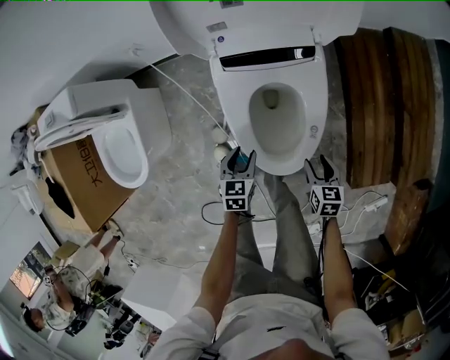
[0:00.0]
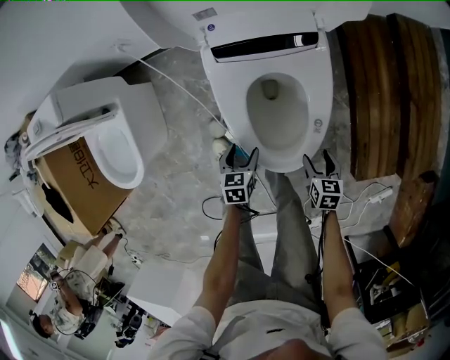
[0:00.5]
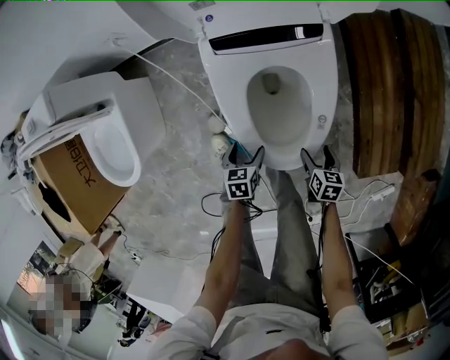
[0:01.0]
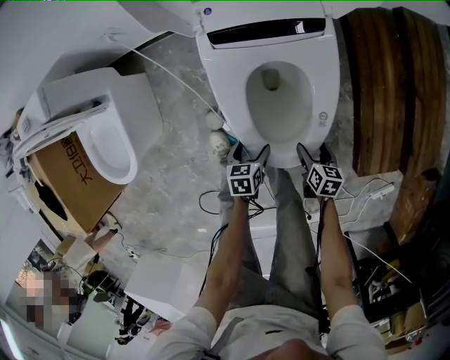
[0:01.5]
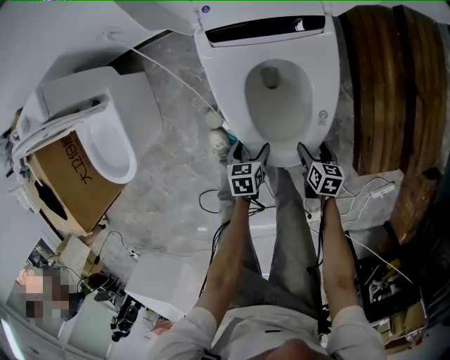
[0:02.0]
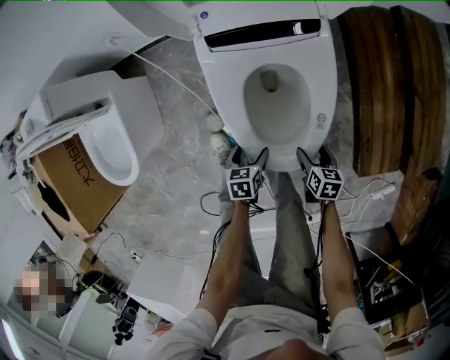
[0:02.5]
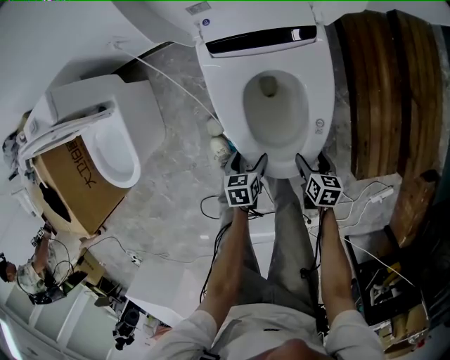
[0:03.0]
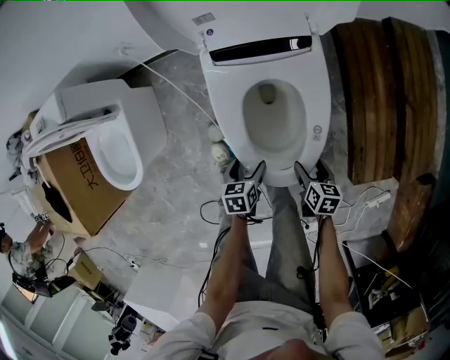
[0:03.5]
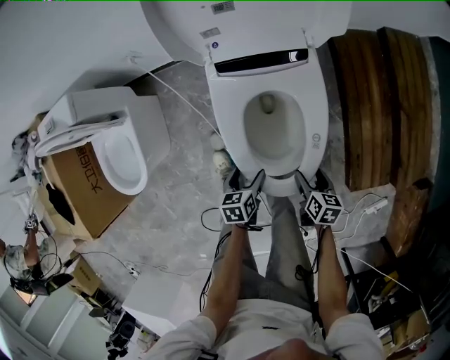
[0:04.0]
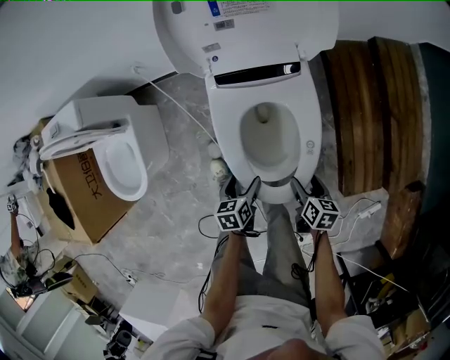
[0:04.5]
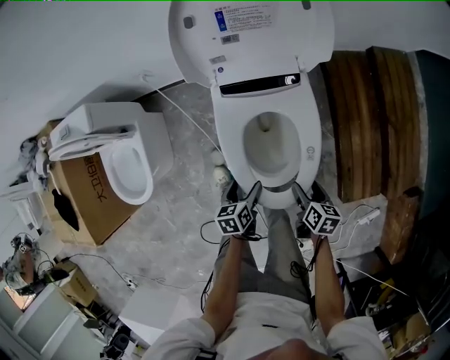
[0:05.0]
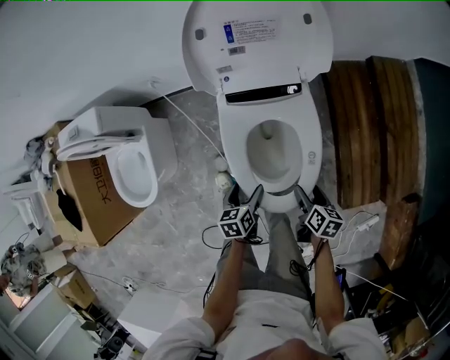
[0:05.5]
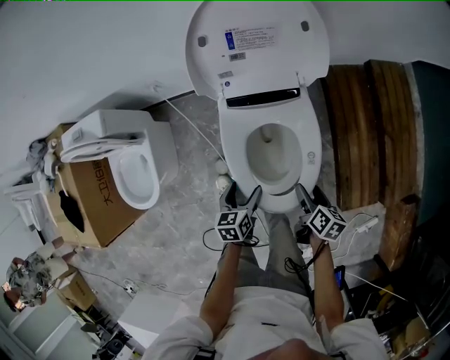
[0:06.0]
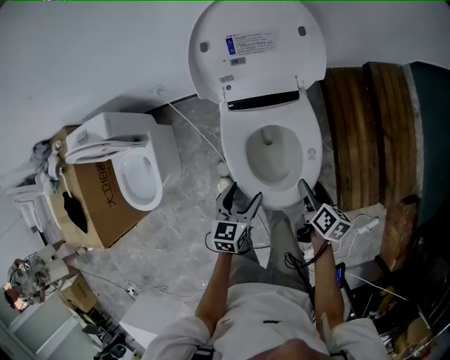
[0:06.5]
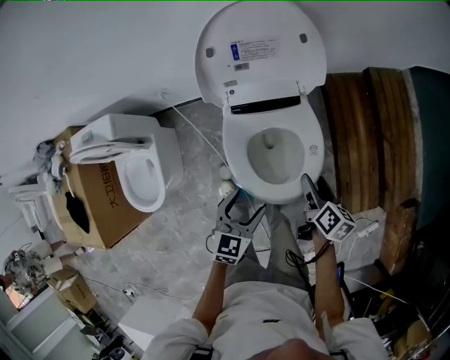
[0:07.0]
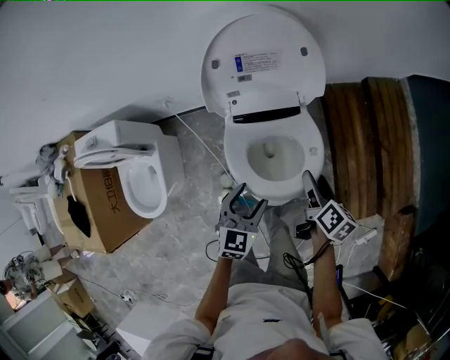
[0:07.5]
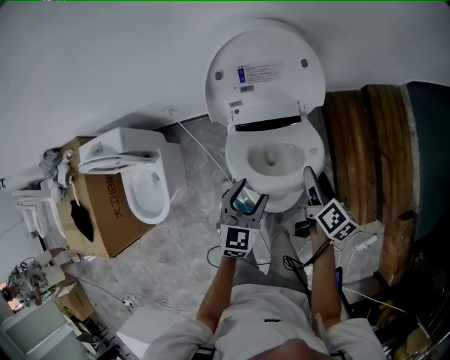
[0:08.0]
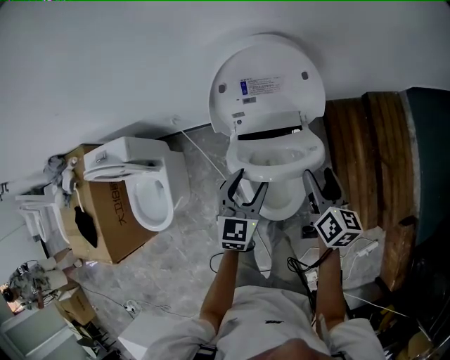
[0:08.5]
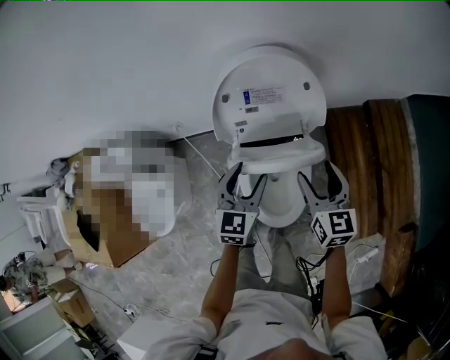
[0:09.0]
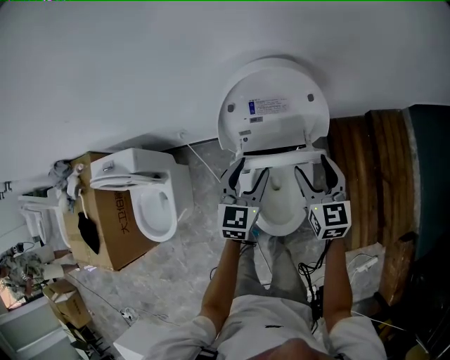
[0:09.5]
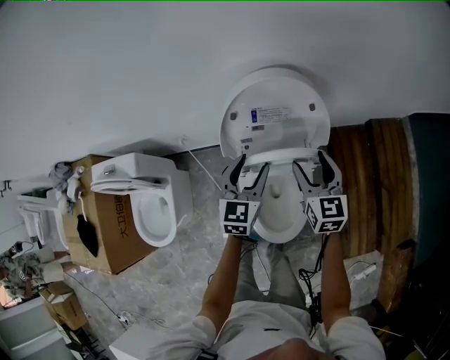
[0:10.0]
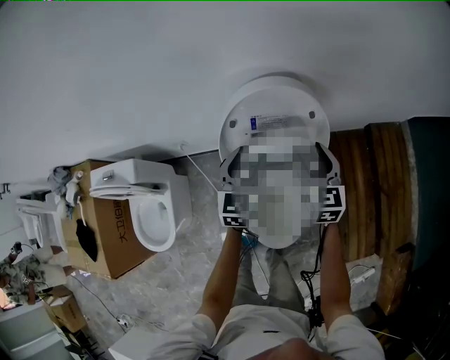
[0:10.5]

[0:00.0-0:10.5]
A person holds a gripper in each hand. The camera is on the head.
0:00.0 to 0:02.0: The right gripper goes roughly 10 cm downward, while the left gripper goes about 15 cm downward and backward, changes its angle by roughly 20 degrees, and opens.
0:02.0 to 0:04.0: Both grippers travel together upward, roughly 10 cm.
0:04.0 to 0:06.5: Both grippers travel together upward, about 20 cm. The left gripper turns by roughly 30 degrees. Meanwhile the right gripper changes its angle by some 20 degrees.
0:06.5 to 0:08.5: The left gripper heads forward and upward, covering approximately 20 cm, and swivels some 20 degrees. The right gripper moves upward and forward, some 20 cm, and changes its angle by roughly 20 degrees.
0:08.5 to 0:10.5: The two grippers go approximately 15 cm forward. The right gripper rotates some 40 degrees.

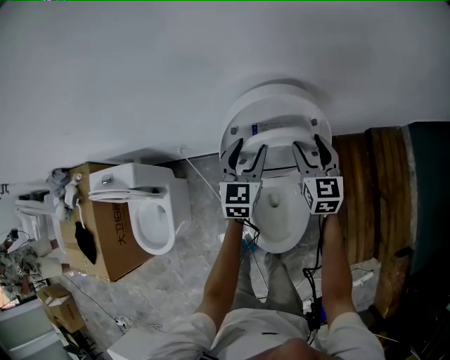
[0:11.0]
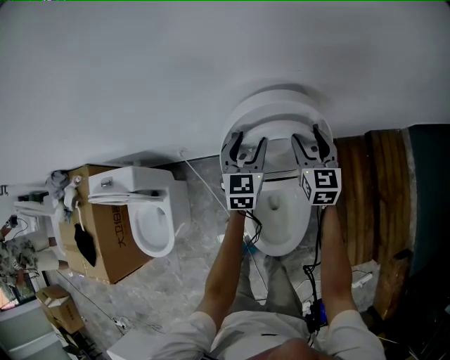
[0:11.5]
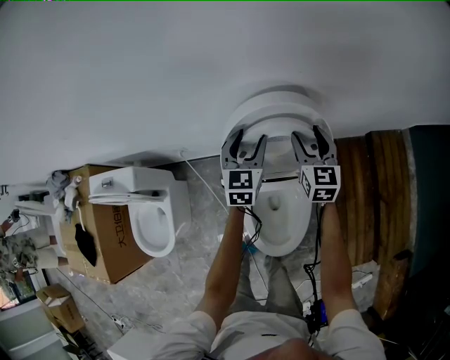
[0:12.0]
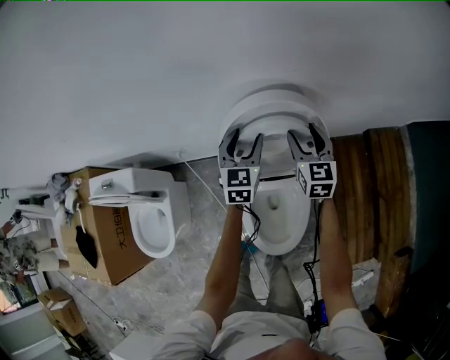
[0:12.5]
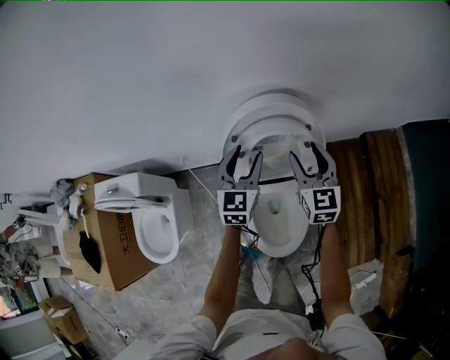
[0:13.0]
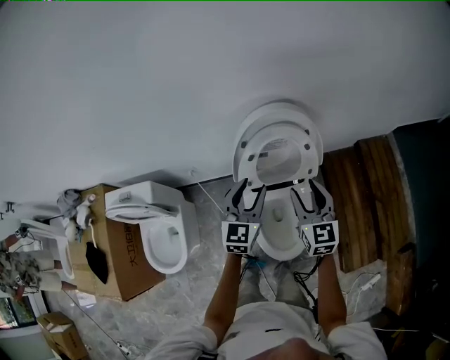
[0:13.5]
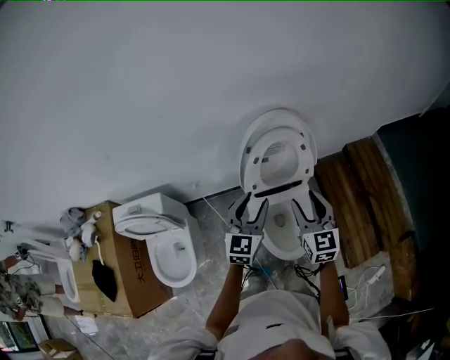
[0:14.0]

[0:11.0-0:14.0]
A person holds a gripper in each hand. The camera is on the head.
0:11.0 to 0:12.5: The grippers stay close to where they were, moving slightly.
0:12.5 to 0:14.0: Both grippers move backward and upward, approximately 30 cm.

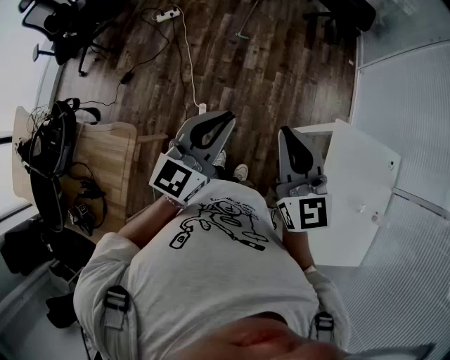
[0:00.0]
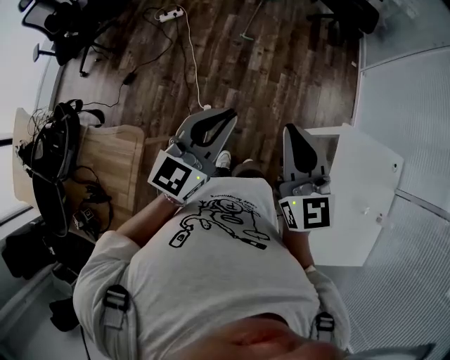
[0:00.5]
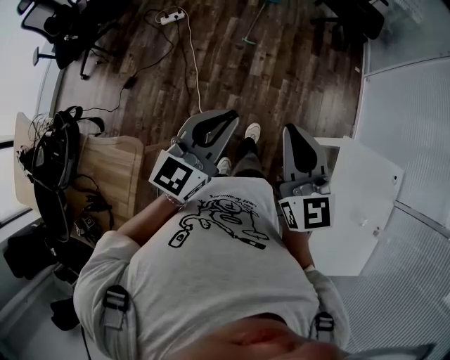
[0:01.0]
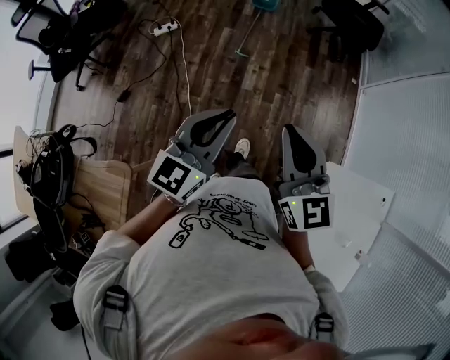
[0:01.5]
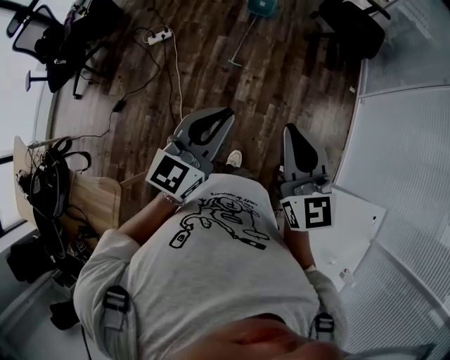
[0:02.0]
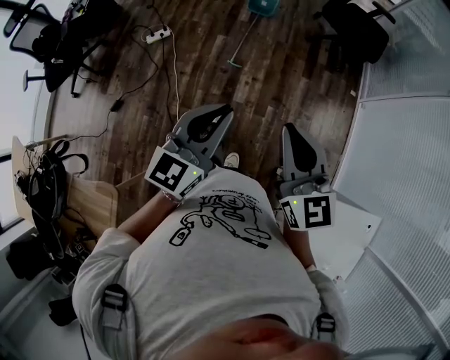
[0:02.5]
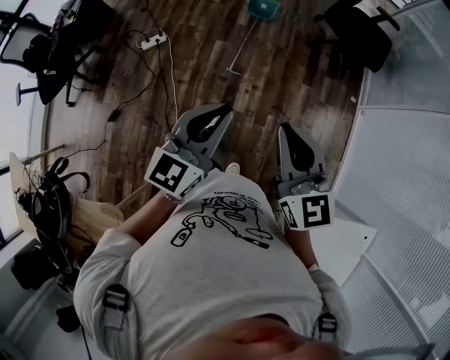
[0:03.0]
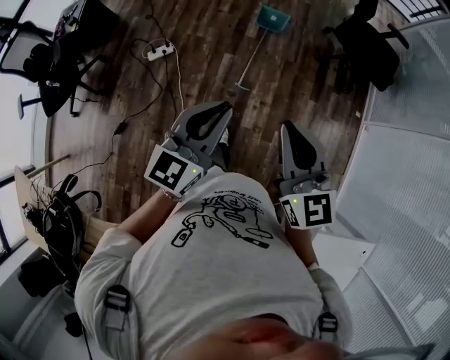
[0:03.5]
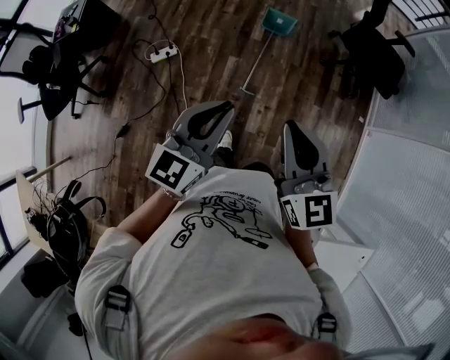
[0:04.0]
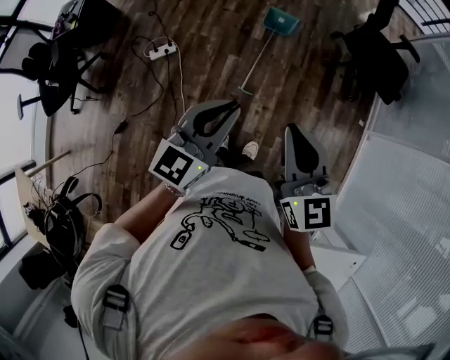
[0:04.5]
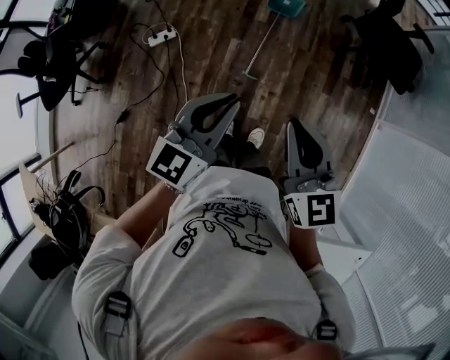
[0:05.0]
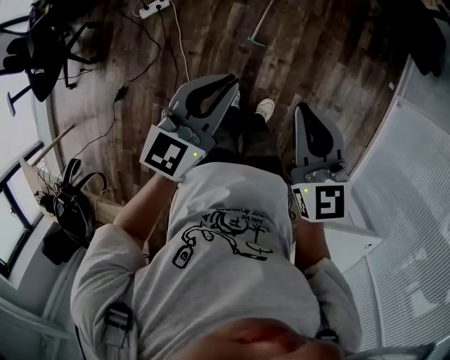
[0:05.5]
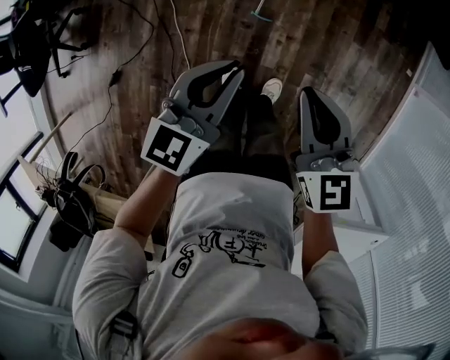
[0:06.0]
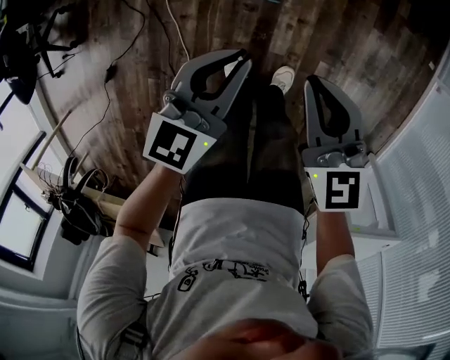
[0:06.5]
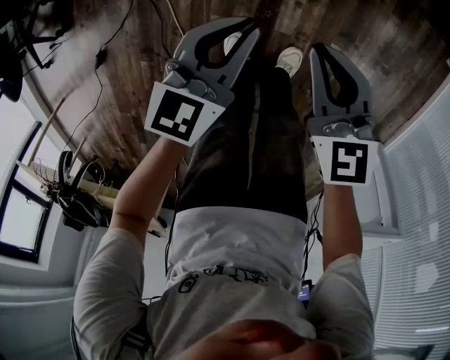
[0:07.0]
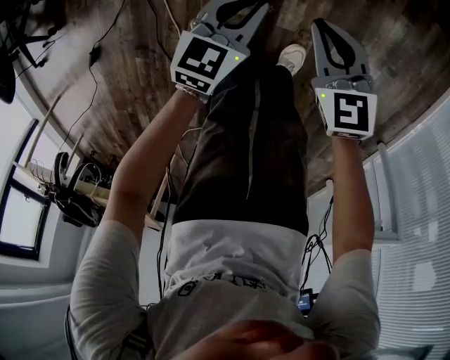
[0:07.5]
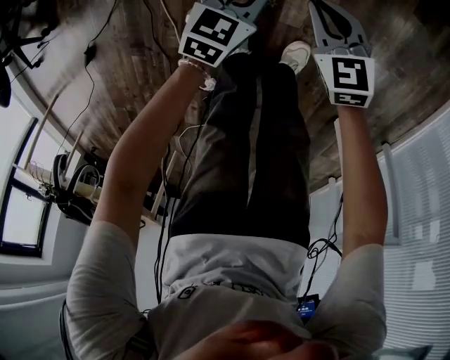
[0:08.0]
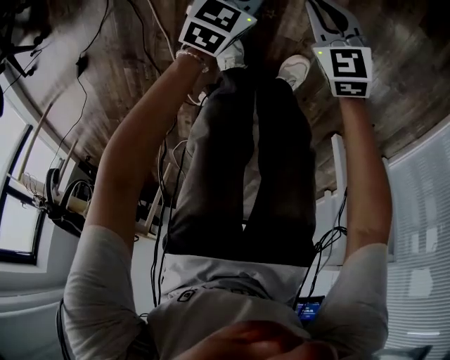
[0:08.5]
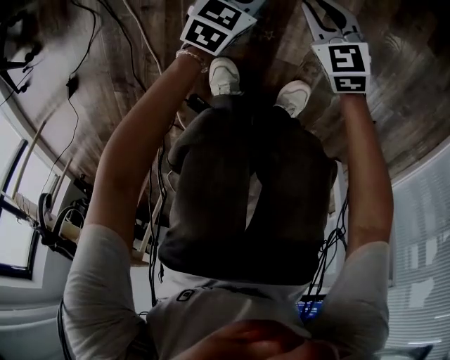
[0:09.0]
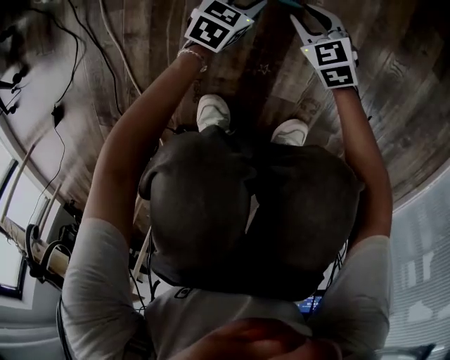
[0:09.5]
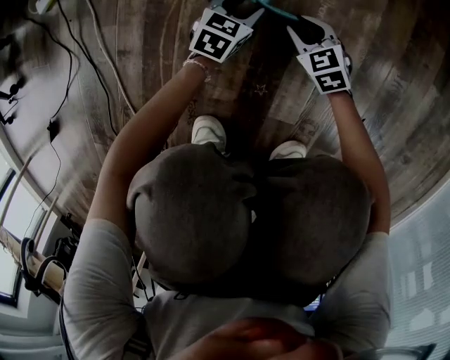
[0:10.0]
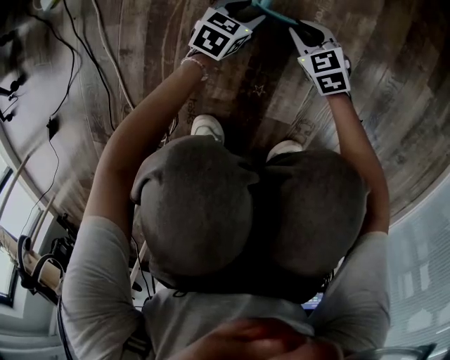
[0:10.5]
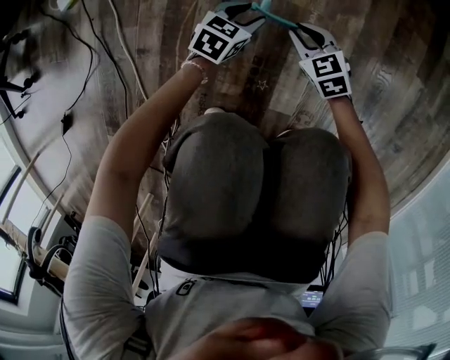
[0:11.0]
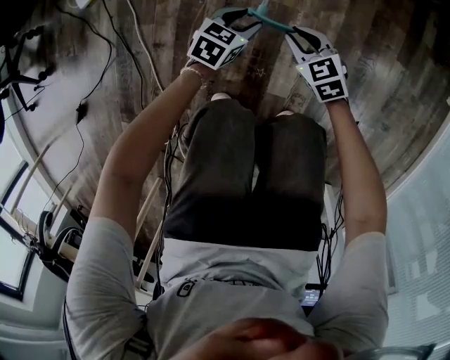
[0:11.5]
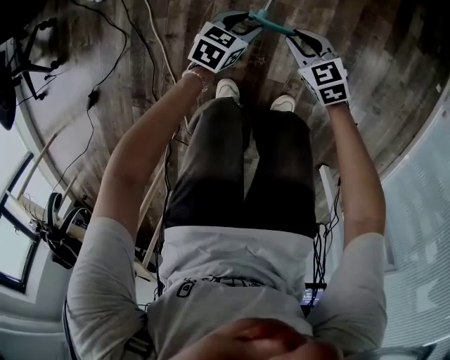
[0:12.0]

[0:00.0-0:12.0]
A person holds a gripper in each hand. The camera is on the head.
0:00.0 to 0:02.0: The grippers both shift forward by approximately 35 cm.
0:02.0 to 0:04.0: The two grippers travel together, forward and to the left, some 40 cm.
0:04.0 to 0:06.0: The grippers both shift downward by roughly 30 cm.
0:06.0 to 0:08.0: The grippers both shift downward by roughly 50 cm. The right gripper rotates approximately 20 degrees, while the left gripper changes its angle by some 20 degrees.
0:08.0 to 0:10.0: The two grippers go some 40 cm downward. The left gripper opens its fingers, while the right gripper opens.
0:10.0 to 0:12.0: Both grippers move upward, about 35 cm.

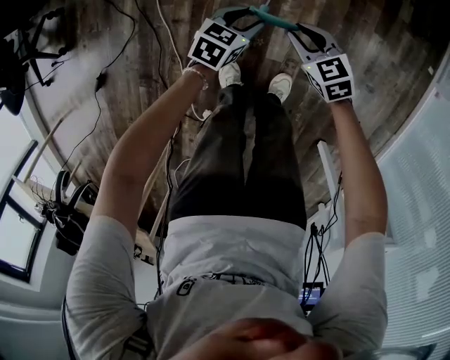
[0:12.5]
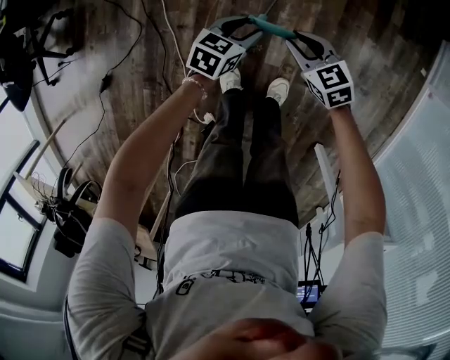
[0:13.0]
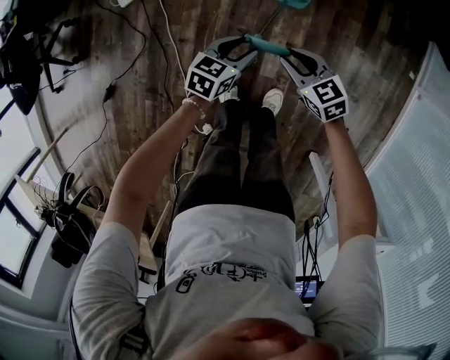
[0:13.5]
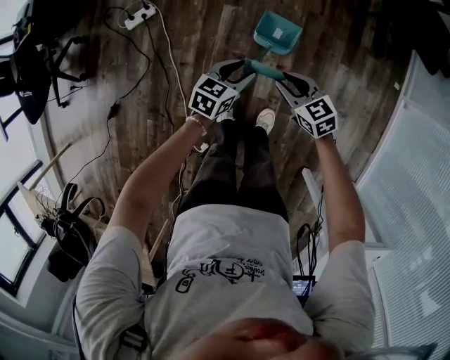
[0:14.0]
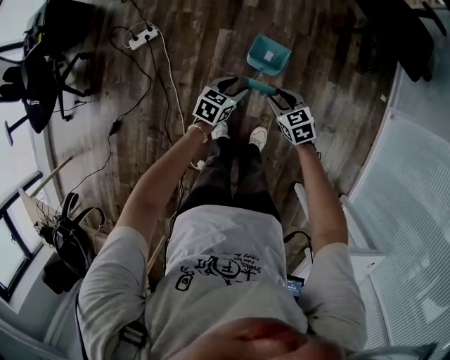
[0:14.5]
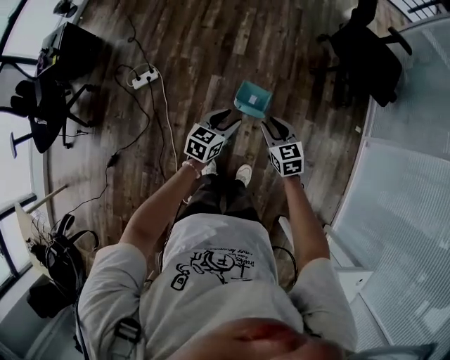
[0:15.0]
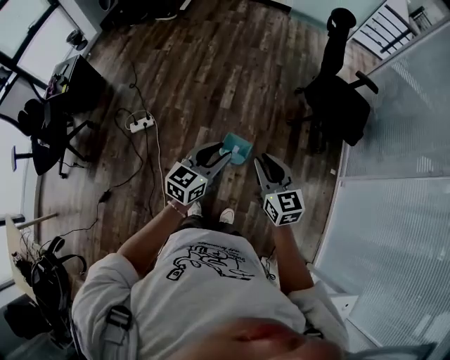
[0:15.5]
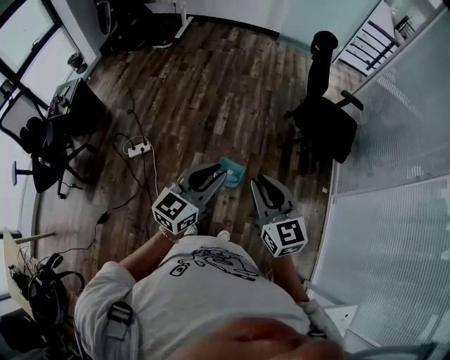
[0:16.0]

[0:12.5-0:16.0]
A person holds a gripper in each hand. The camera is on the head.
0:12.5 to 0:14.5: The two grippers go approximately 20 cm upward.
0:14.5 to 0:16.0: The grippers both shift upward by some 50 cm. The right gripper angles its fingers upward, by roughly 40 degrees. Meanwhile the left gripper points its fingers some 40 degrees further upward, and closes up.
